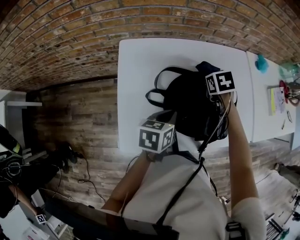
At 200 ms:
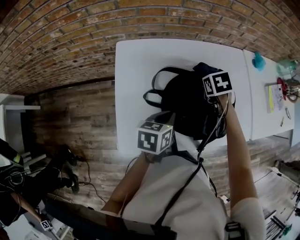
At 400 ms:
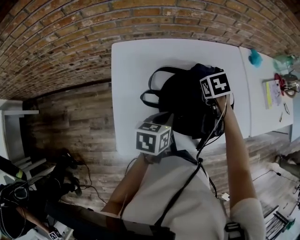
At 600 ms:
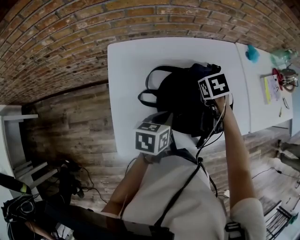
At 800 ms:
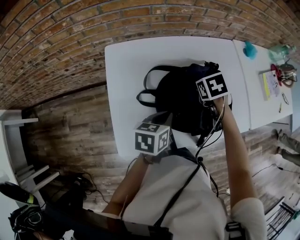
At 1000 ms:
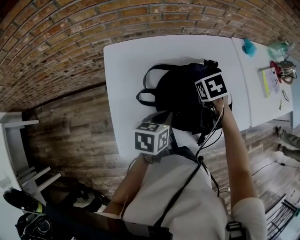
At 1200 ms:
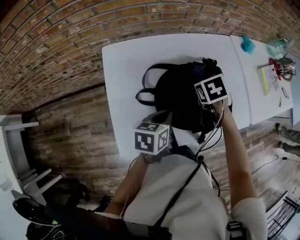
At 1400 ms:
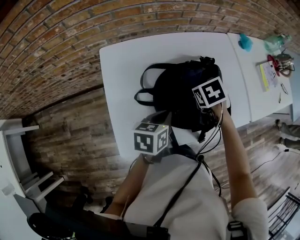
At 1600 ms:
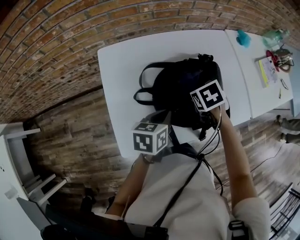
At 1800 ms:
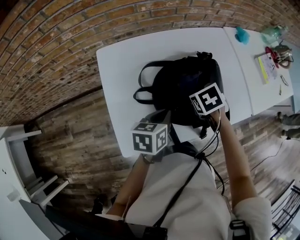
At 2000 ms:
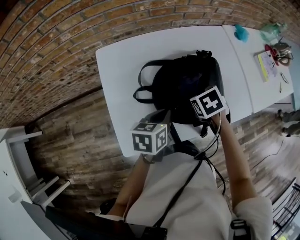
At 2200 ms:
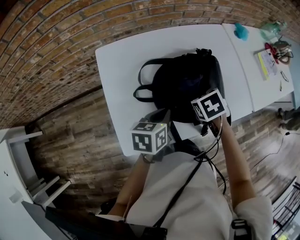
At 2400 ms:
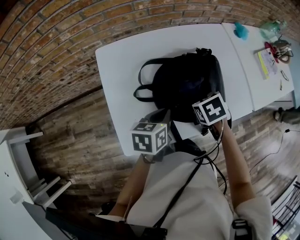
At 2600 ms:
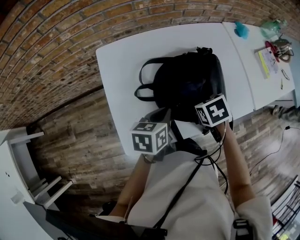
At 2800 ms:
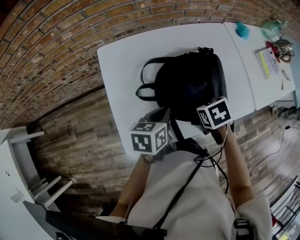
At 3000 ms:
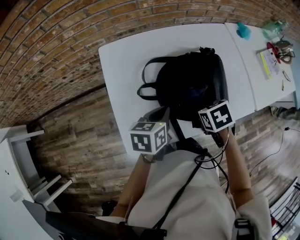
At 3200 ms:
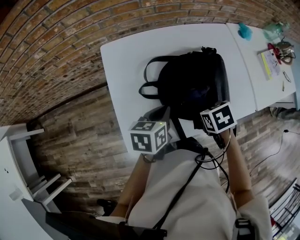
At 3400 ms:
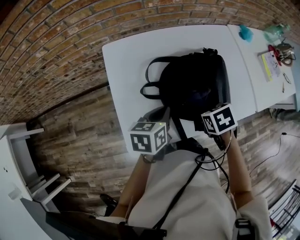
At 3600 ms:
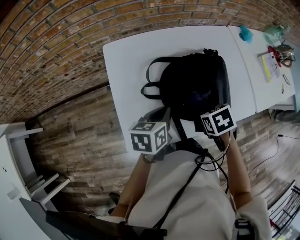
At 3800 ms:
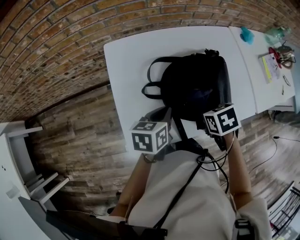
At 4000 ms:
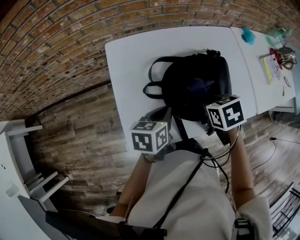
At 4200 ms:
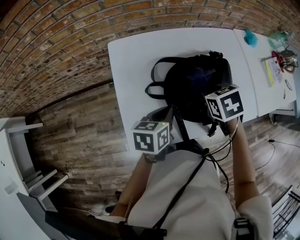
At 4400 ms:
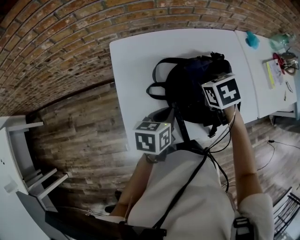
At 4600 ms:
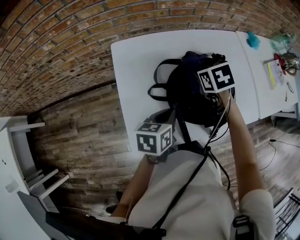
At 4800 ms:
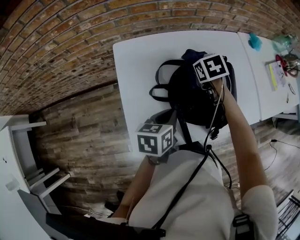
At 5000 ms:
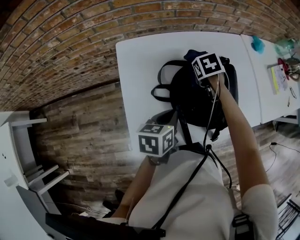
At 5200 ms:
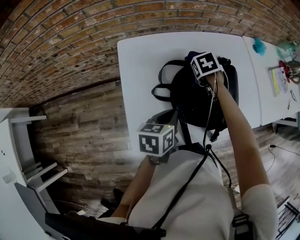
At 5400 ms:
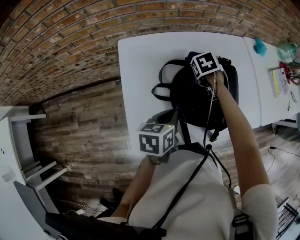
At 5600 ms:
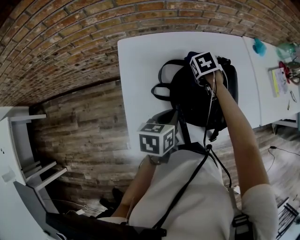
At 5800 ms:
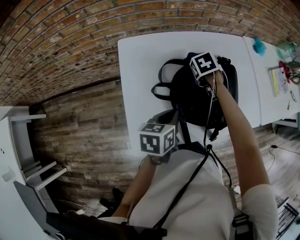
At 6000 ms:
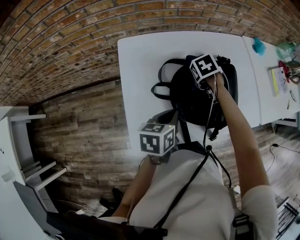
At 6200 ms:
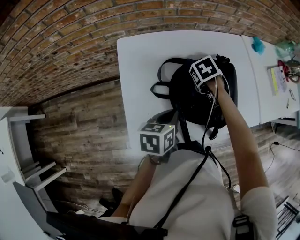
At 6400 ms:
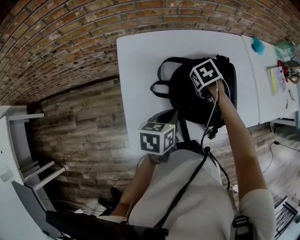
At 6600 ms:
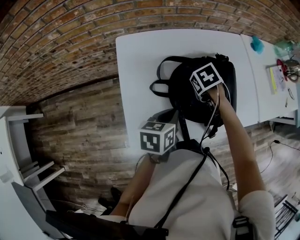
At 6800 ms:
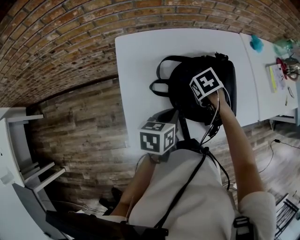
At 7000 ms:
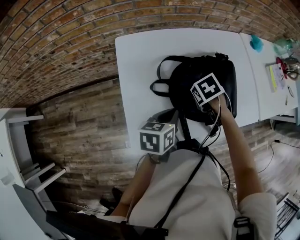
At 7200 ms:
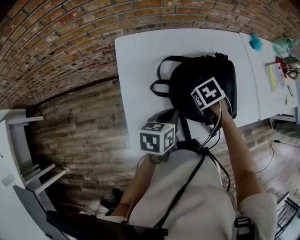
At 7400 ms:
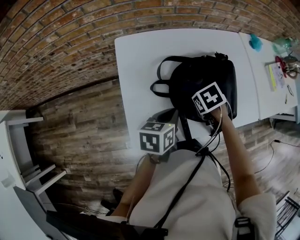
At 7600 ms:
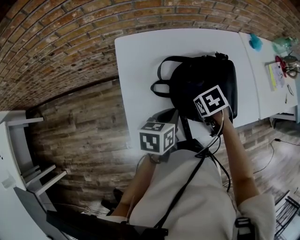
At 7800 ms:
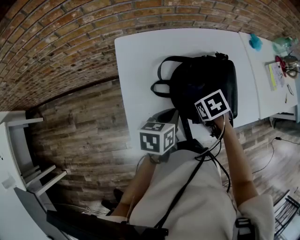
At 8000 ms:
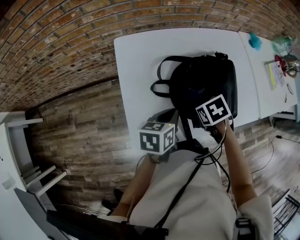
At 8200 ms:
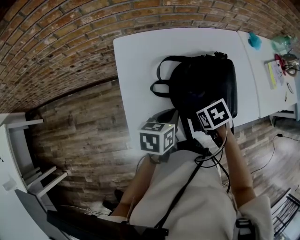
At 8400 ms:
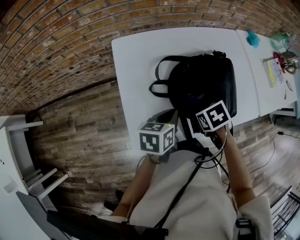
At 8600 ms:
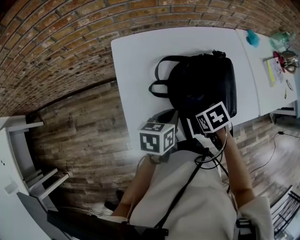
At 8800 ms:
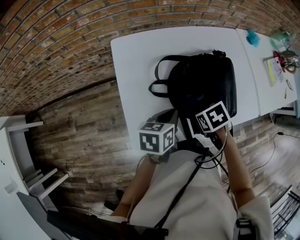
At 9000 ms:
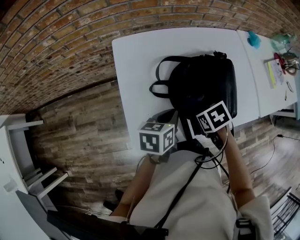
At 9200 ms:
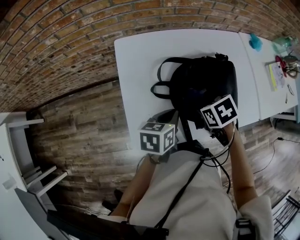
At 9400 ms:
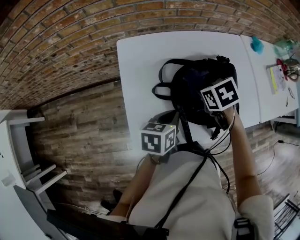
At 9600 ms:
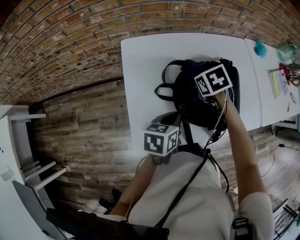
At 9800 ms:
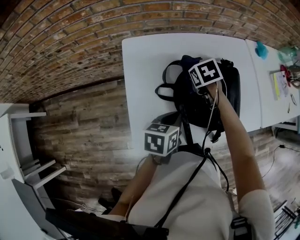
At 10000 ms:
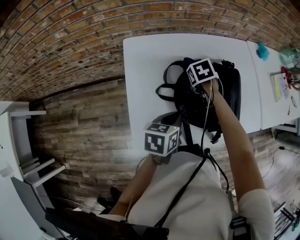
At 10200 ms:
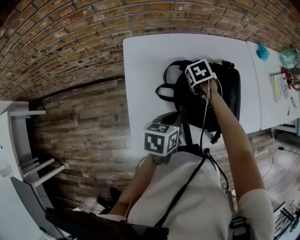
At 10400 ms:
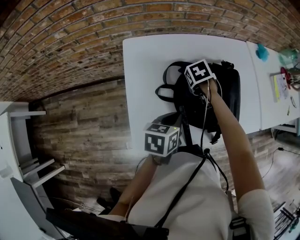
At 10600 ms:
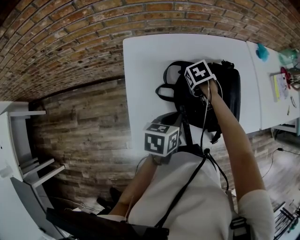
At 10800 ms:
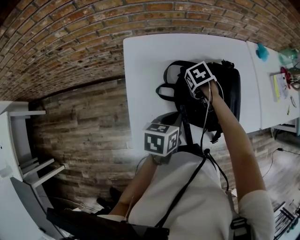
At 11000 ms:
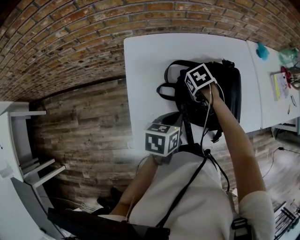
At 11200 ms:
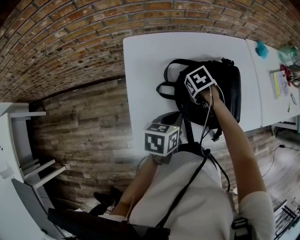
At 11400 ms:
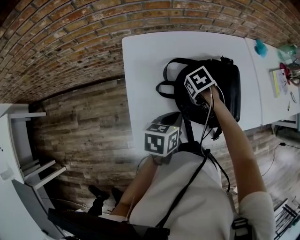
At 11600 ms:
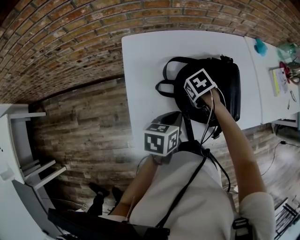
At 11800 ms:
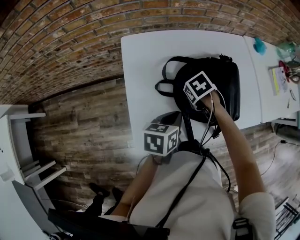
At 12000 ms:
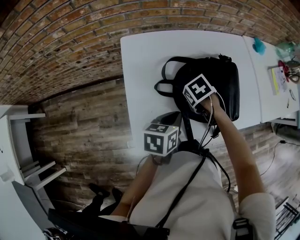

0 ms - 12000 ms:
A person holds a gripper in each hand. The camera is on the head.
0 ms - 1600 ms: The right gripper goes approximately 10 cm backward.
1600 ms - 3000 ms: The right gripper shifts approximately 10 cm backward.
3000 ms - 4400 ms: The right gripper ends up about 15 cm from where it was.
4400 ms - 6000 ms: The right gripper heads downward, covering approximately 10 cm.
6000 ms - 7600 ms: The right gripper ends up some 15 cm from where it was.
7600 ms - 9000 ms: The right gripper moves roughly 5 cm.
9000 ms - 10400 ms: The right gripper moves approximately 20 cm.
10400 ms - 12000 ms: The right gripper ends up roughly 10 cm from where it was.

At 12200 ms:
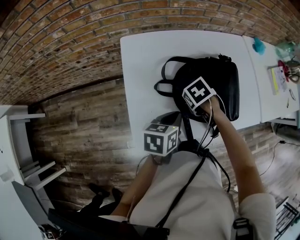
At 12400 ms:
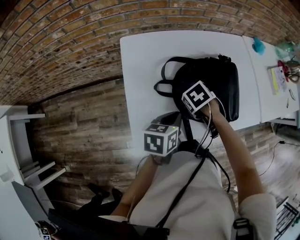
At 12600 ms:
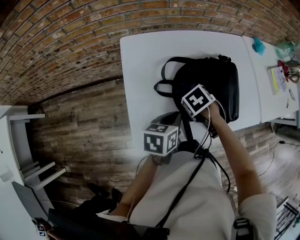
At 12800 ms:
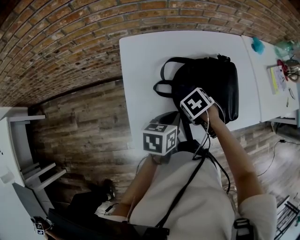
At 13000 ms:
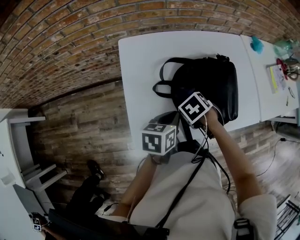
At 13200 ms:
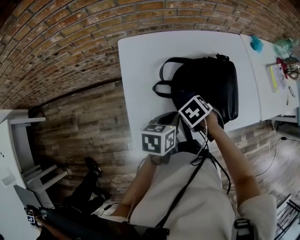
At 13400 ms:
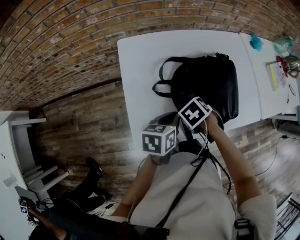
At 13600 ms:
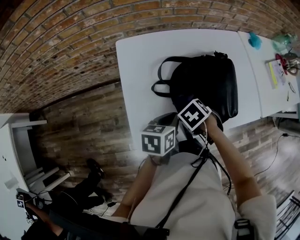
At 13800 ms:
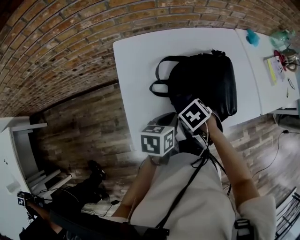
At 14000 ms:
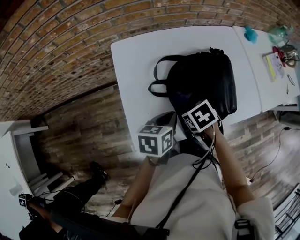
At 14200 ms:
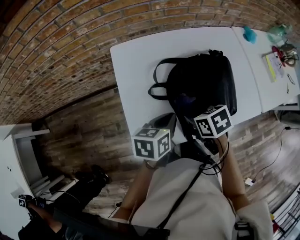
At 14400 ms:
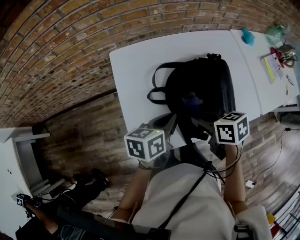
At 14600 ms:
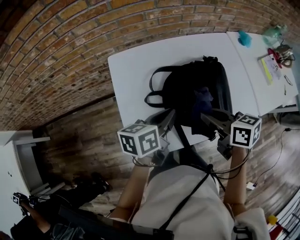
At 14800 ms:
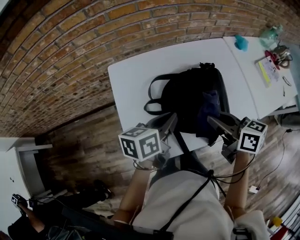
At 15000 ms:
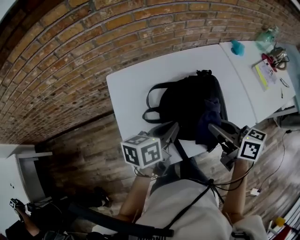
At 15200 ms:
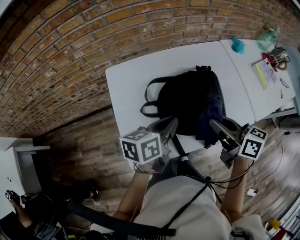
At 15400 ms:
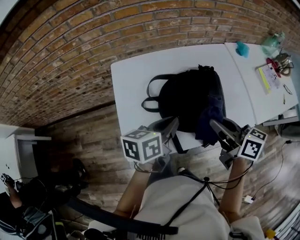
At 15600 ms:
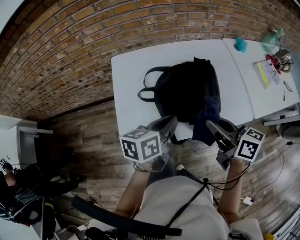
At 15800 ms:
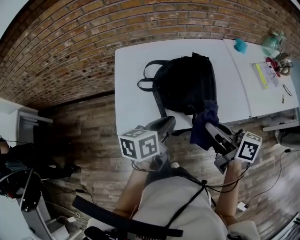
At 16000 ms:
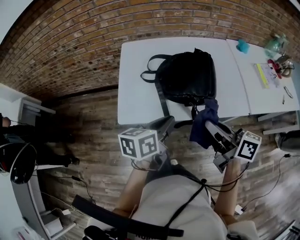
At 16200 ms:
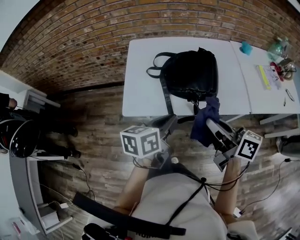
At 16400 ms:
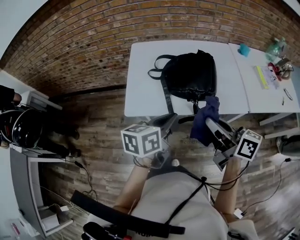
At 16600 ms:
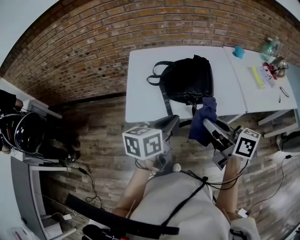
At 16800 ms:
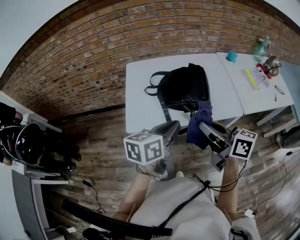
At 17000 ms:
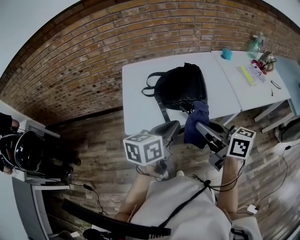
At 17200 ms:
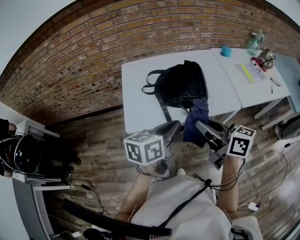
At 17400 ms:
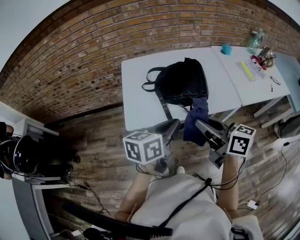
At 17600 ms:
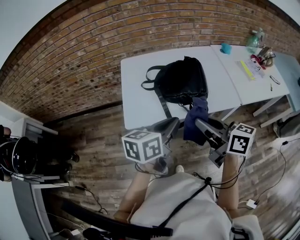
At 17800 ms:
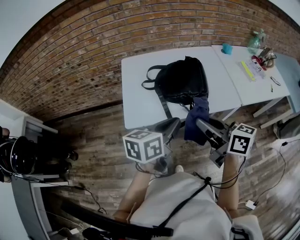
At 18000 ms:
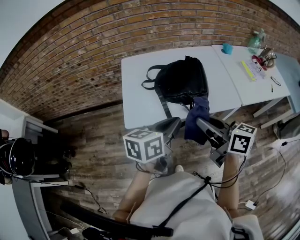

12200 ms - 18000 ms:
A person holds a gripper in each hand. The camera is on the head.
12200 ms - 13600 ms: The right gripper changes place by roughly 5 cm.
13600 ms - 15000 ms: The right gripper moves upward, roughly 20 cm, and tips its fingers upward by about 70 degrees. Meanwhile the left gripper heads upward, covering approximately 10 cm.
15000 ms - 16600 ms: Both grippers move backward, roughly 25 cm.
16600 ms - 18000 ms: The grippers move only a little.

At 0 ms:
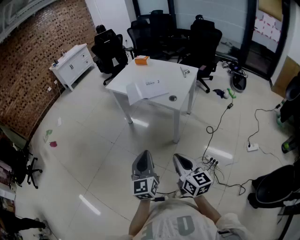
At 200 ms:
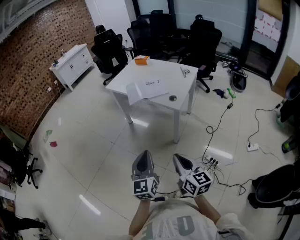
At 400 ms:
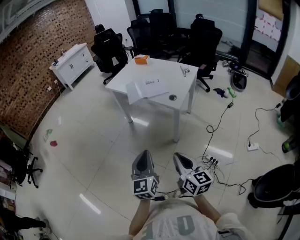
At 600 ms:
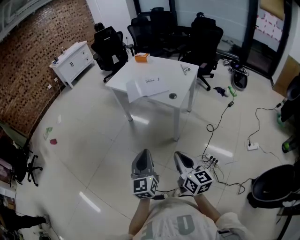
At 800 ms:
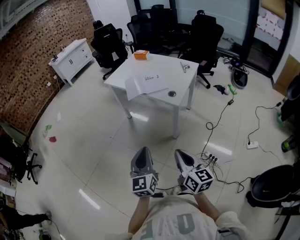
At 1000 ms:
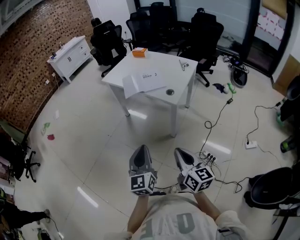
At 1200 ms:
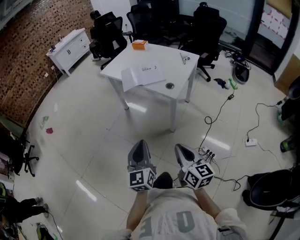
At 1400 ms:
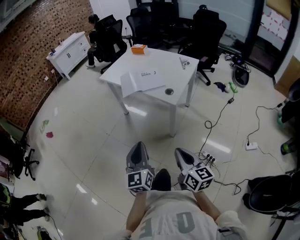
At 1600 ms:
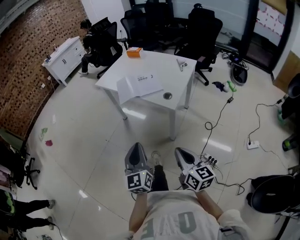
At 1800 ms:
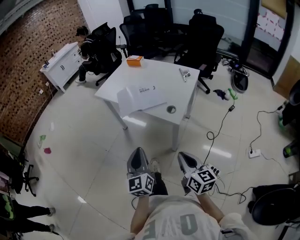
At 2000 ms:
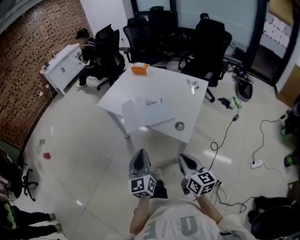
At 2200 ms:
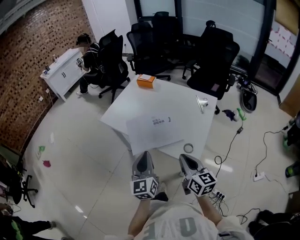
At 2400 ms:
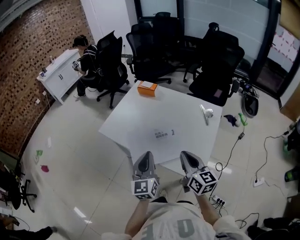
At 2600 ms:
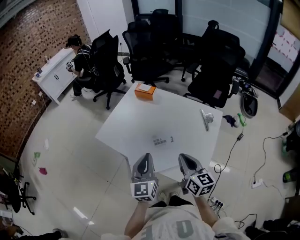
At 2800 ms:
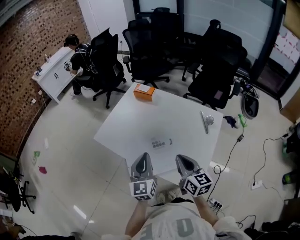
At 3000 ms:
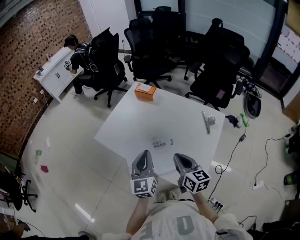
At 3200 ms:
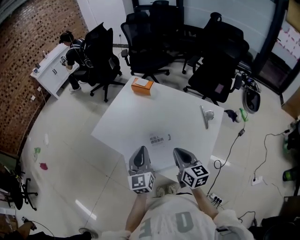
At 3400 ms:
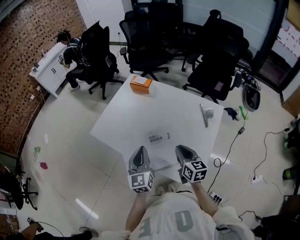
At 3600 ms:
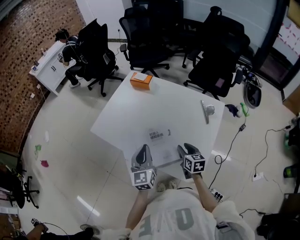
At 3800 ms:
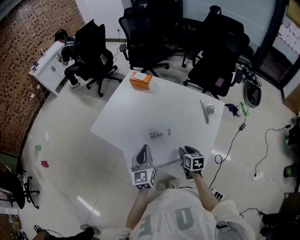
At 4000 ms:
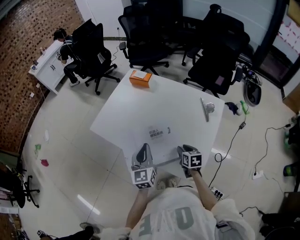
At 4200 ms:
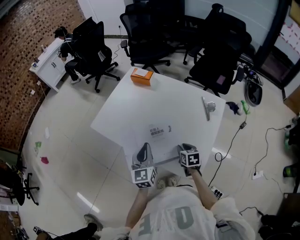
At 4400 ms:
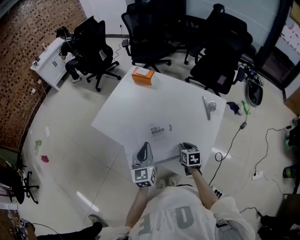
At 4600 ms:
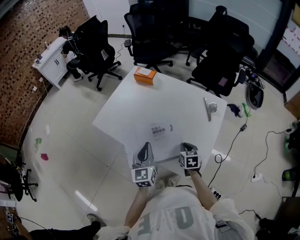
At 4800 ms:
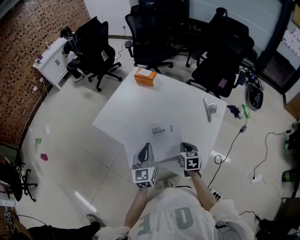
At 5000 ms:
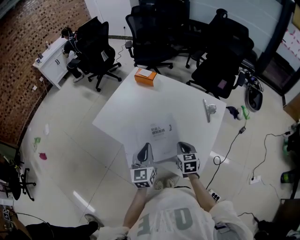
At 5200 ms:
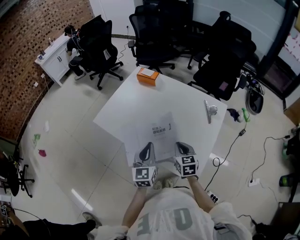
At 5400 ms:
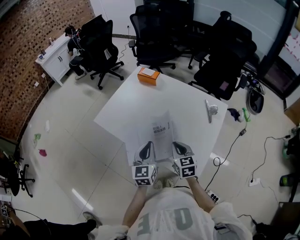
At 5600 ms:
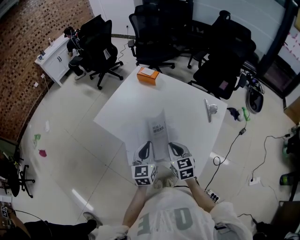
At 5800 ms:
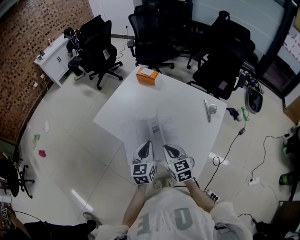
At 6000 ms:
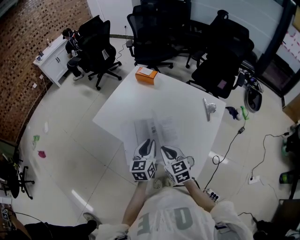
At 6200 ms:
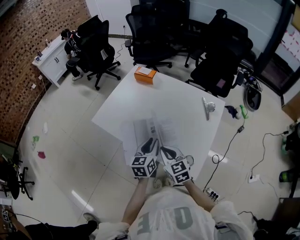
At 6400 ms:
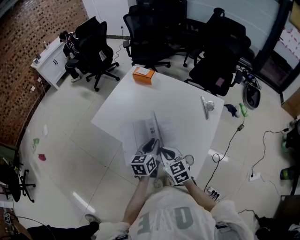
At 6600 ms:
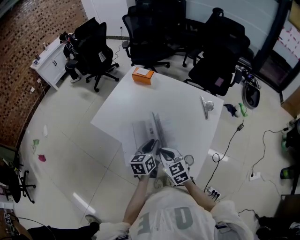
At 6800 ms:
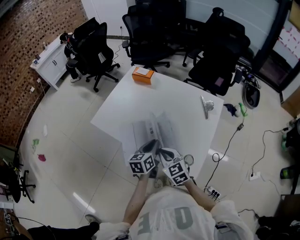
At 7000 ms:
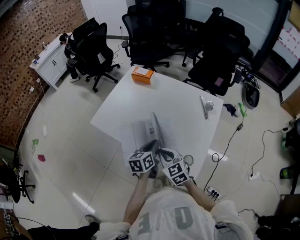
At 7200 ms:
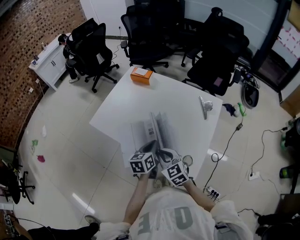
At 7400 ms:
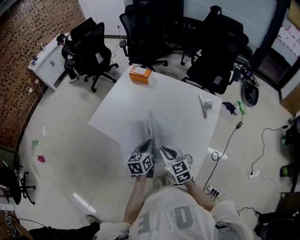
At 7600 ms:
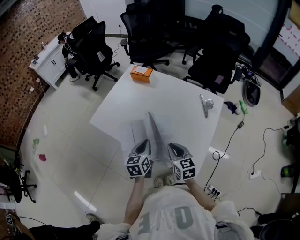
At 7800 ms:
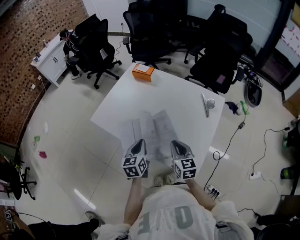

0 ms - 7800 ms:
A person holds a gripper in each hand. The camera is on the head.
0 ms - 1600 ms: The right gripper moves forward and to the right, about 10 cm. Meanwhile the left gripper shifts some 10 cm forward.
1600 ms - 3200 ms: The pair of grippers is taken forward, roughly 50 cm.
3200 ms - 4600 ms: The left gripper is displaced downward by some 5 cm, while the right gripper shifts some 15 cm downward, tips its fingers downward by roughly 30 degrees, and opens and closes again.
4600 ms - 6200 ms: The right gripper shifts approximately 15 cm to the left and upward, and changes its angle by some 30 degrees. Meanwhile the left gripper turns by some 20 degrees, and opens its fingers.
6200 ms - 7800 ms: The left gripper moves to the left, approximately 5 cm, while the right gripper goes some 5 cm to the right.